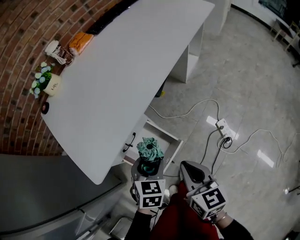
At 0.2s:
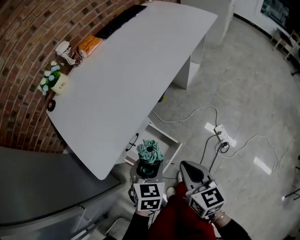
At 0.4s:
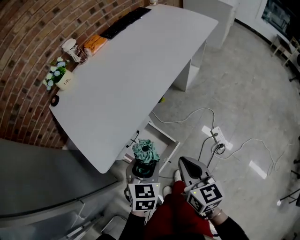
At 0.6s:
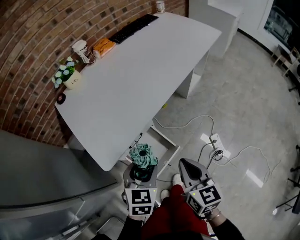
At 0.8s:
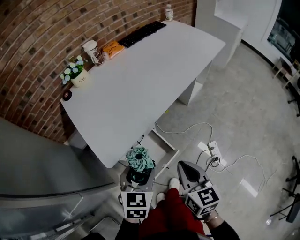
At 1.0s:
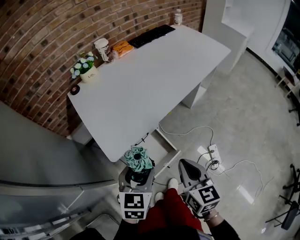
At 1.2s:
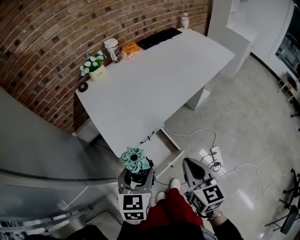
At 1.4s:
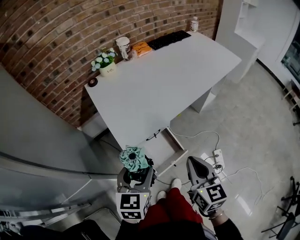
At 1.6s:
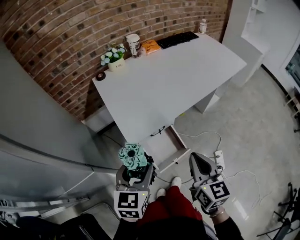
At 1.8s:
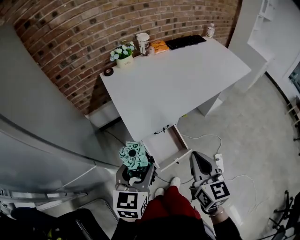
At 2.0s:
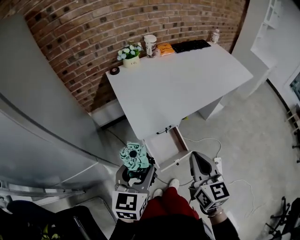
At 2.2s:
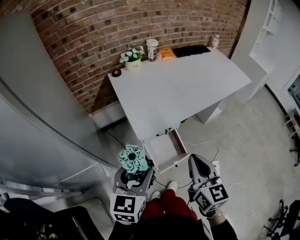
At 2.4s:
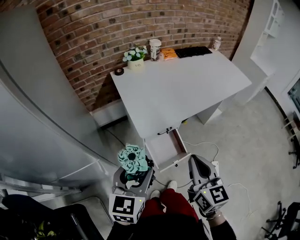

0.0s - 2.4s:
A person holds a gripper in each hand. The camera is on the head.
0.0s - 1.2s: The left gripper goes approximately 25 cm upward, to the left and backward, and turns by some 20 degrees, while the right gripper shifts about 15 cm upward.
1.2s - 2.4s: The left gripper goes about 15 cm backward, to the left and upward, while the right gripper moves to the left, upward and backward, roughly 15 cm.

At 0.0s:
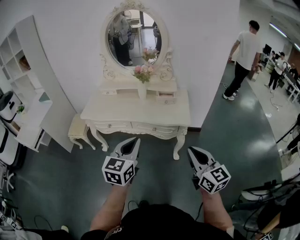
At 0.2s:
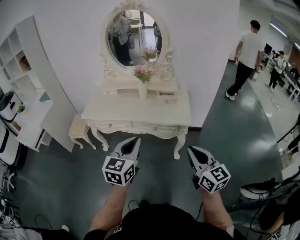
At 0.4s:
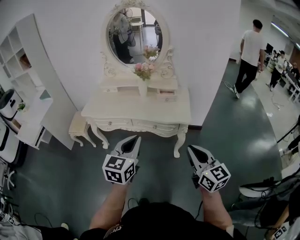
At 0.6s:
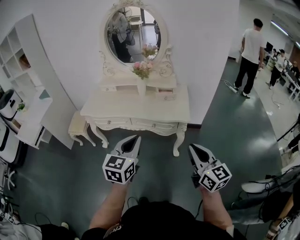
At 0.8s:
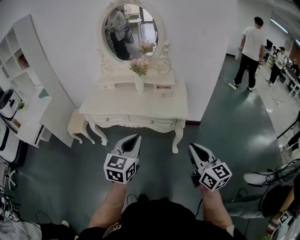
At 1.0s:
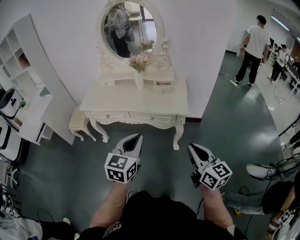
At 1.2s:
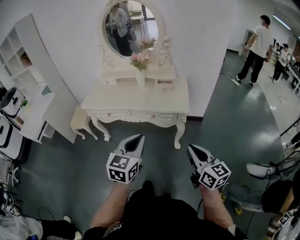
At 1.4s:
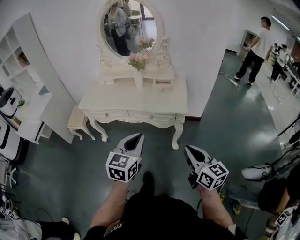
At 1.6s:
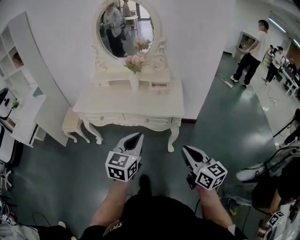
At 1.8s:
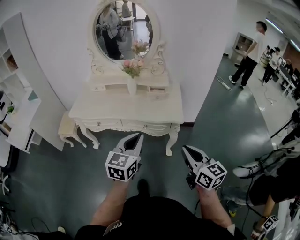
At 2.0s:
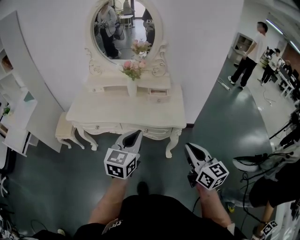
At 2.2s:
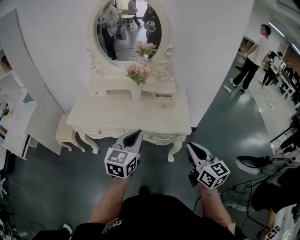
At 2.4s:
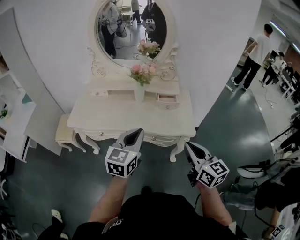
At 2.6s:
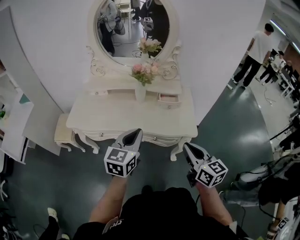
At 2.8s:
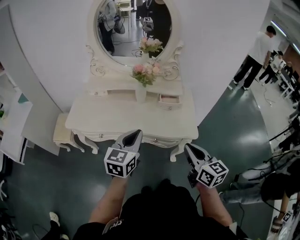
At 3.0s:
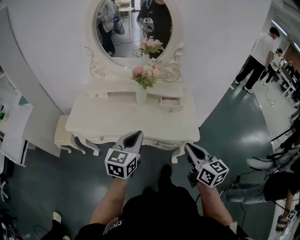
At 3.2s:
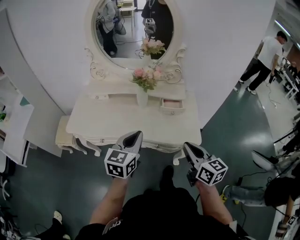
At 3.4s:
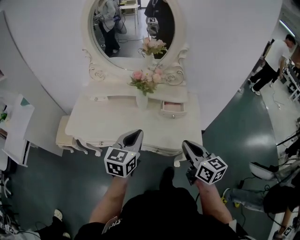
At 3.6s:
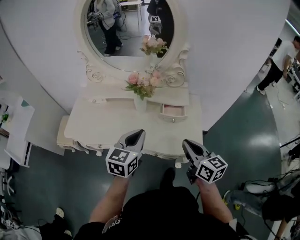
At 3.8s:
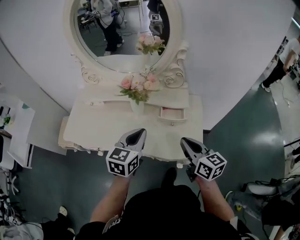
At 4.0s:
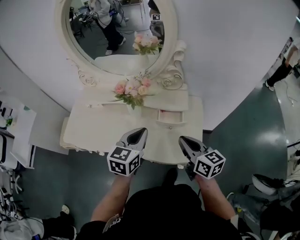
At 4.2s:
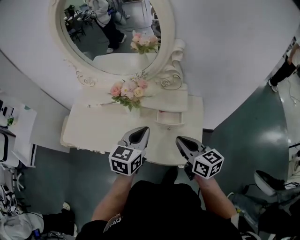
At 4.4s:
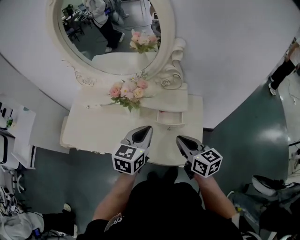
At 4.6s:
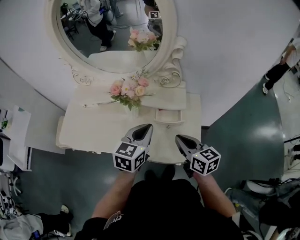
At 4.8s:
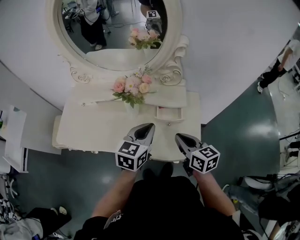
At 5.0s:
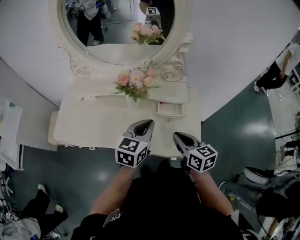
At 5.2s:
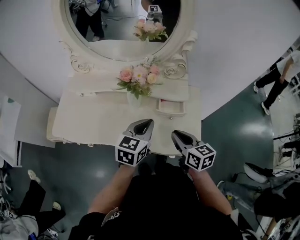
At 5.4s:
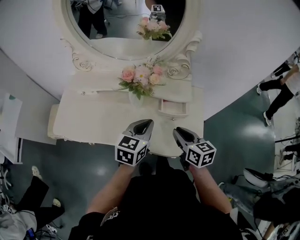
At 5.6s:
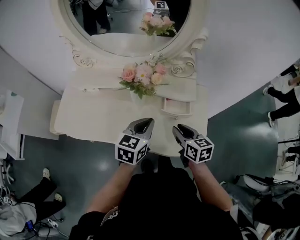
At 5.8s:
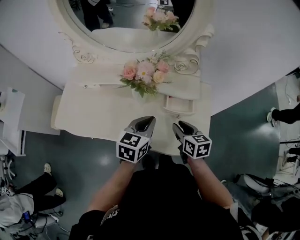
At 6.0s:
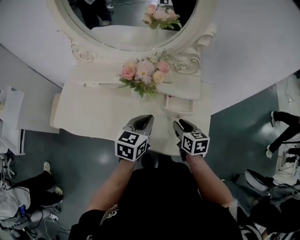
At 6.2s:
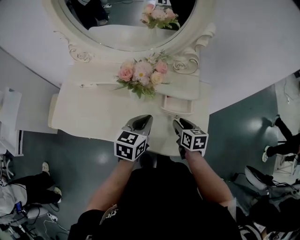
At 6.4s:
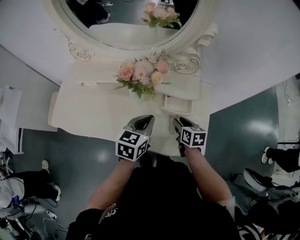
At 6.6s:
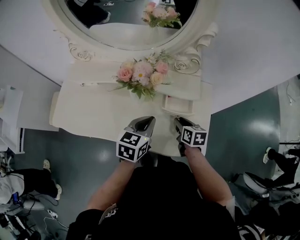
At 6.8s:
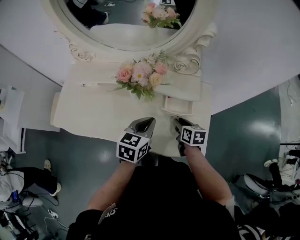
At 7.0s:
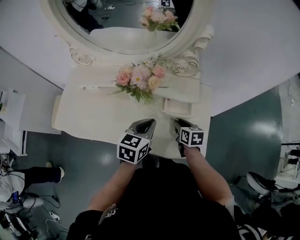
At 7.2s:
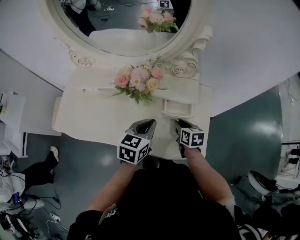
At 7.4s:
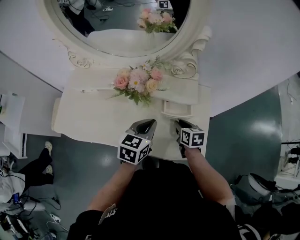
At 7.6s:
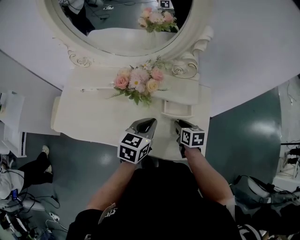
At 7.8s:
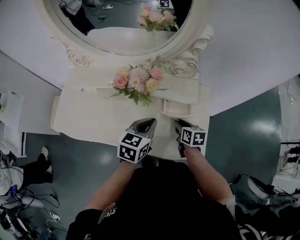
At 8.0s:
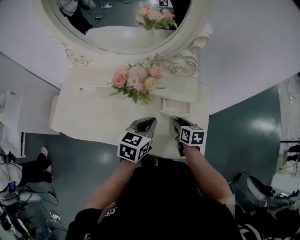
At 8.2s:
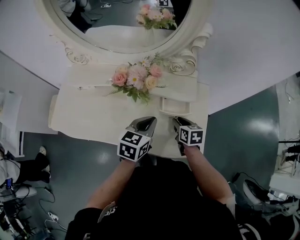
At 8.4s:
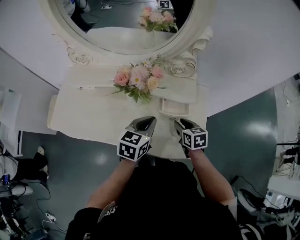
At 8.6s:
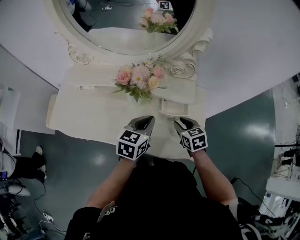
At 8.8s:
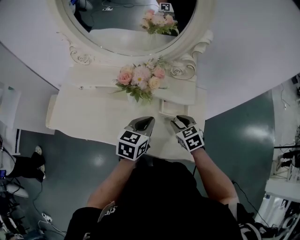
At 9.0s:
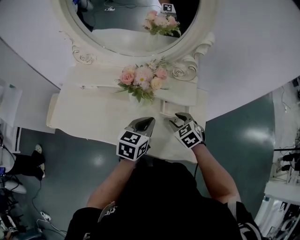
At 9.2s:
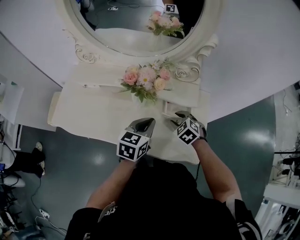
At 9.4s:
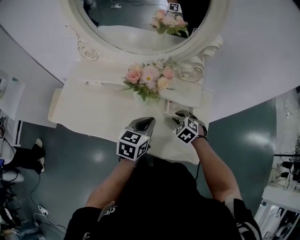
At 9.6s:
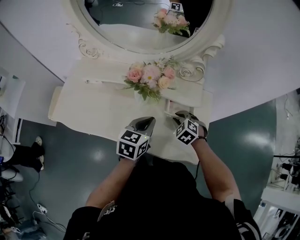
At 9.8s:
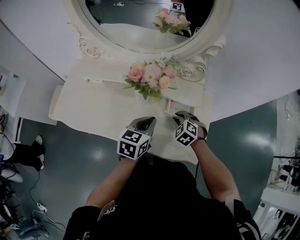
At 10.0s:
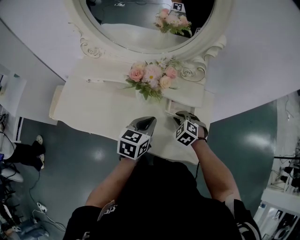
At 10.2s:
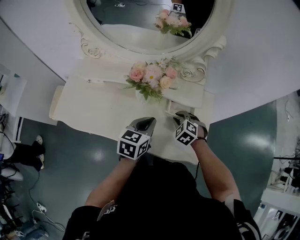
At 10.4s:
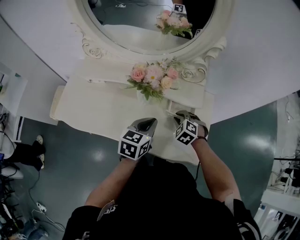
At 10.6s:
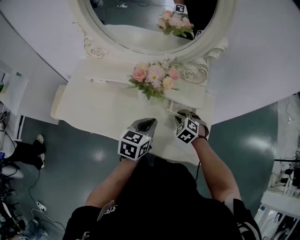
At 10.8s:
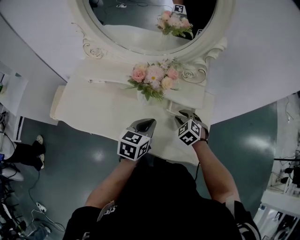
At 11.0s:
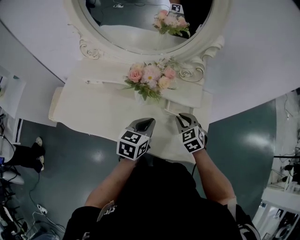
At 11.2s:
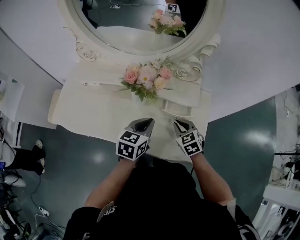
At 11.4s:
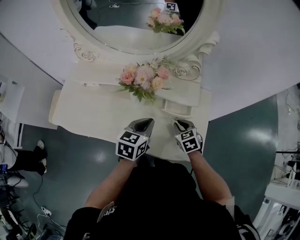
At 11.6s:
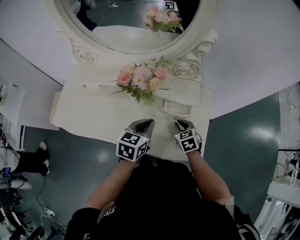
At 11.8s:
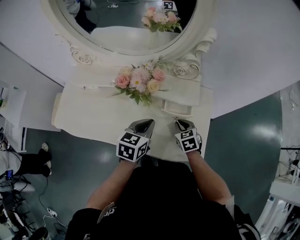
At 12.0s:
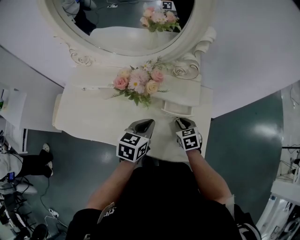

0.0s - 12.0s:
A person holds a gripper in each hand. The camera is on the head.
0.0s - 1.6s: The left gripper is displaced to the right by roughly 5 cm; the right gripper moves some 5 cm.
1.6s - 3.0s: The two grippers go approximately 25 cm forward.
3.0s - 4.4s: The right gripper heads forward, covering approximately 25 cm. The left gripper heads forward and to the right, covering some 25 cm.
4.4s - 6.0s: The left gripper is displaced downward and to the left by about 10 cm. Meanwhile the right gripper heads downward and forward, covering some 15 cm, changes its angle by about 20 degrees, and opens its fingers.
6.0s - 7.6s: The right gripper shifts some 5 cm downward.
7.6s - 9.0s: The right gripper moves approximately 5 cm, and twists about 50 degrees counterclockwise, seen from behind.
9.0s - 10.4s: The right gripper swivels about 20 degrees.
10.4s - 12.0s: The right gripper rolls clockwise, seen from behind, by some 50 degrees.

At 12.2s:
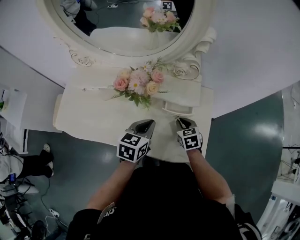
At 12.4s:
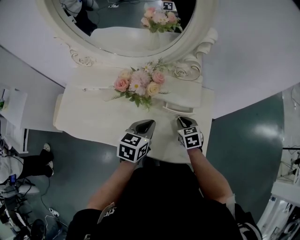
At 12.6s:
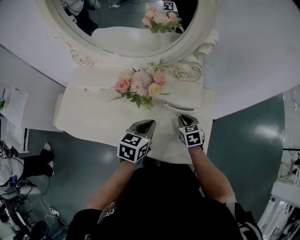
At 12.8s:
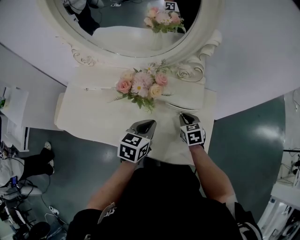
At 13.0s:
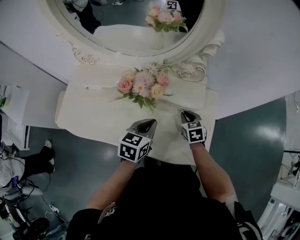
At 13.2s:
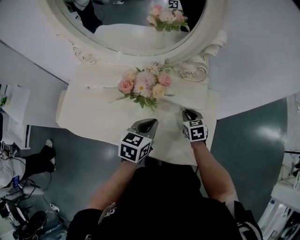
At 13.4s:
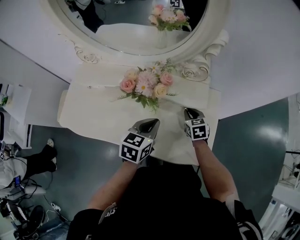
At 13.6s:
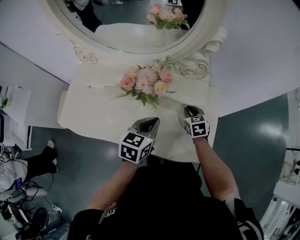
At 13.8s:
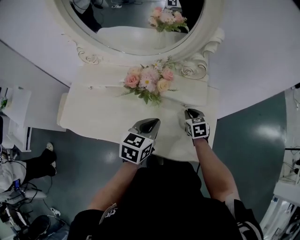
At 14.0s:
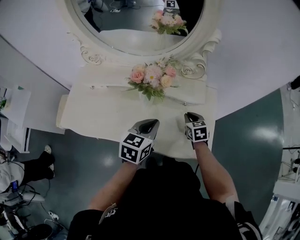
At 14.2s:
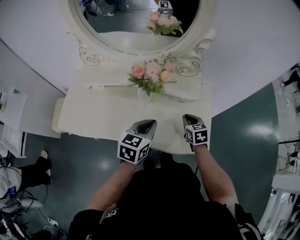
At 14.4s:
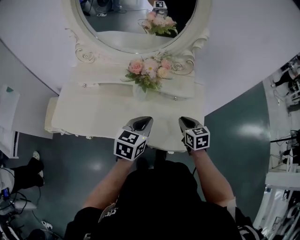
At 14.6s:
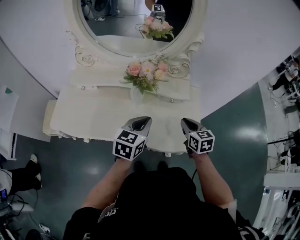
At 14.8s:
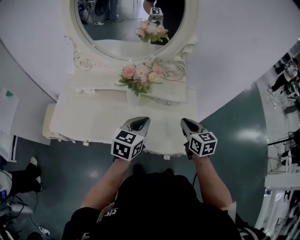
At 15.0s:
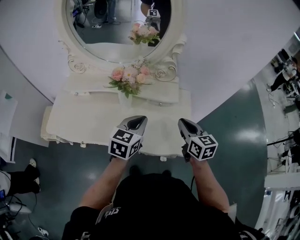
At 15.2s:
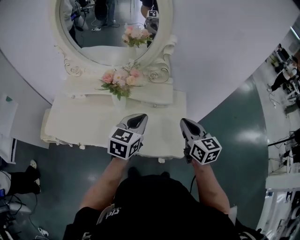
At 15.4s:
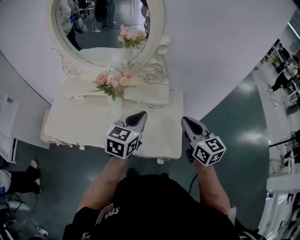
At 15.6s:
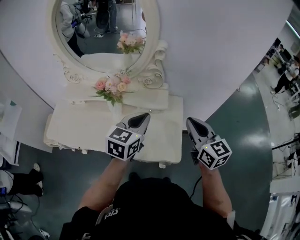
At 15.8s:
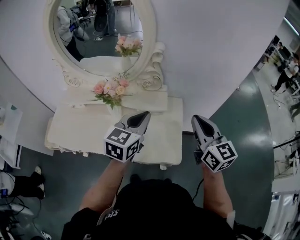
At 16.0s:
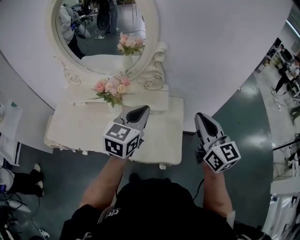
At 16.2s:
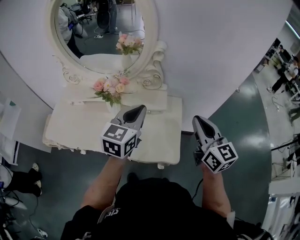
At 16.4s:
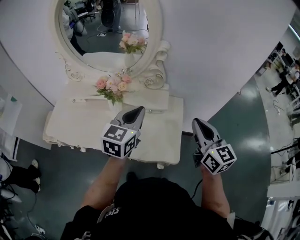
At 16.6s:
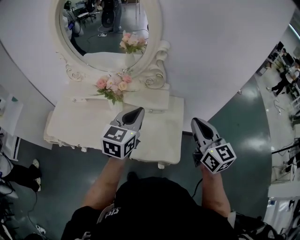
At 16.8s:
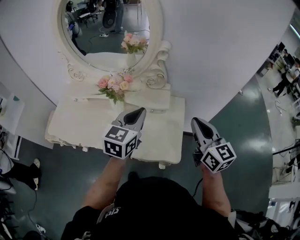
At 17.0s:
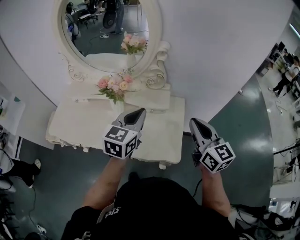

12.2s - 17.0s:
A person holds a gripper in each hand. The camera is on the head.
12.2s - 13.8s: There are only small adjustments of the grippers.
13.8s - 15.4s: The left gripper goes about 15 cm upward and to the right. Meanwhile the right gripper moves upward, backward and to the right, about 30 cm, and tips its fingers upward by approximately 30 degrees.
15.4s - 17.0s: The right gripper heads upward, covering roughly 5 cm.

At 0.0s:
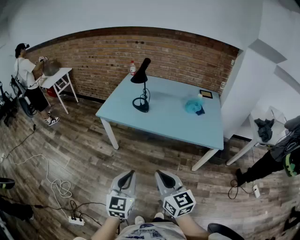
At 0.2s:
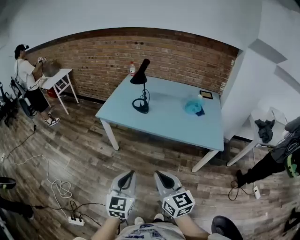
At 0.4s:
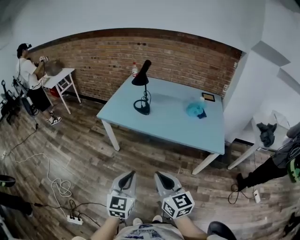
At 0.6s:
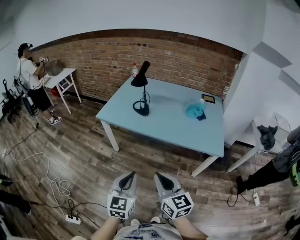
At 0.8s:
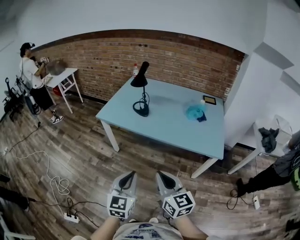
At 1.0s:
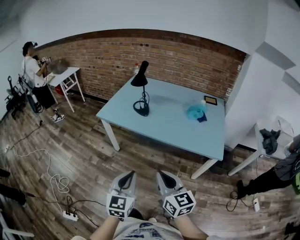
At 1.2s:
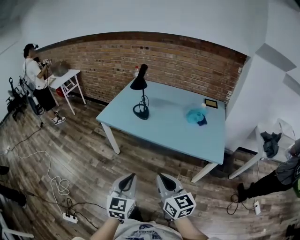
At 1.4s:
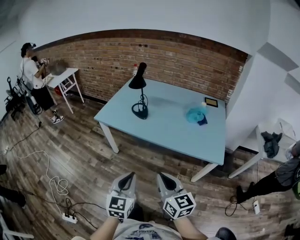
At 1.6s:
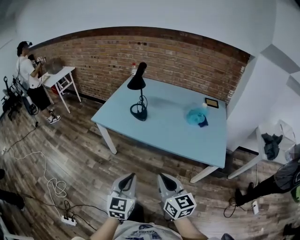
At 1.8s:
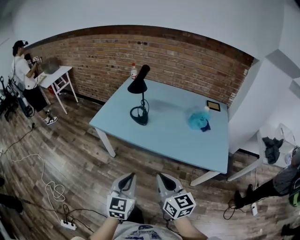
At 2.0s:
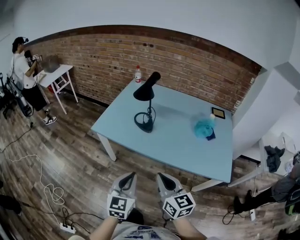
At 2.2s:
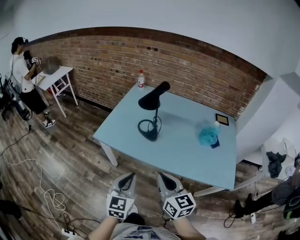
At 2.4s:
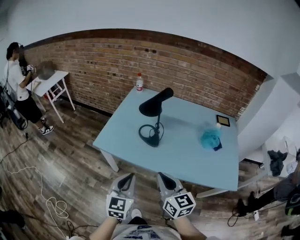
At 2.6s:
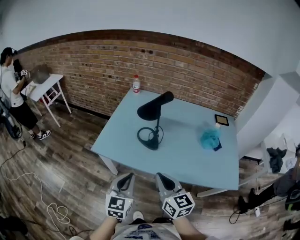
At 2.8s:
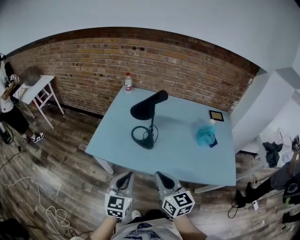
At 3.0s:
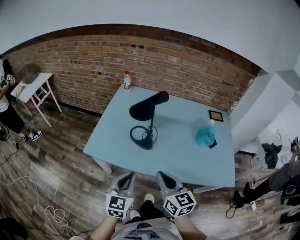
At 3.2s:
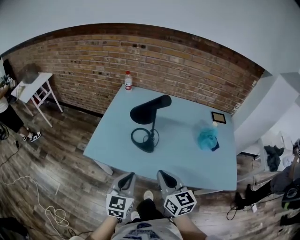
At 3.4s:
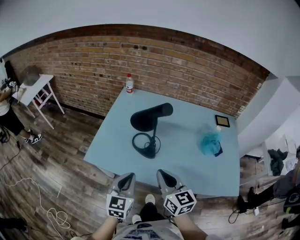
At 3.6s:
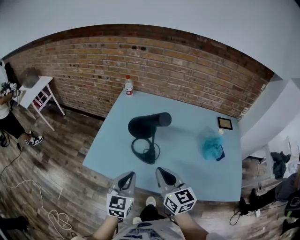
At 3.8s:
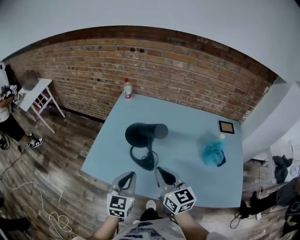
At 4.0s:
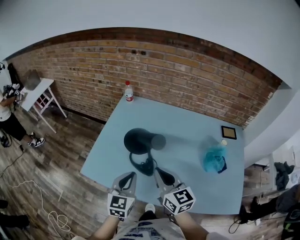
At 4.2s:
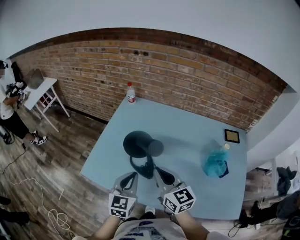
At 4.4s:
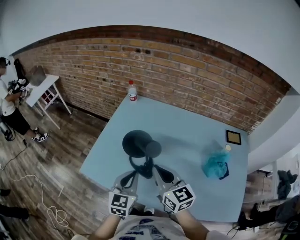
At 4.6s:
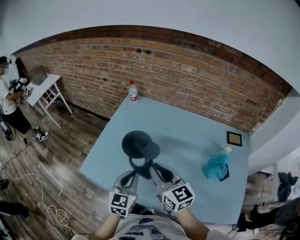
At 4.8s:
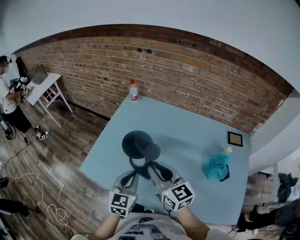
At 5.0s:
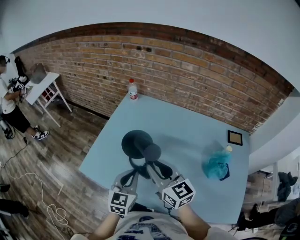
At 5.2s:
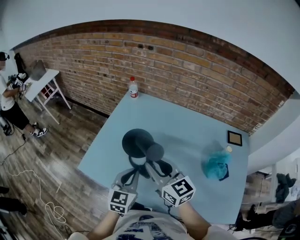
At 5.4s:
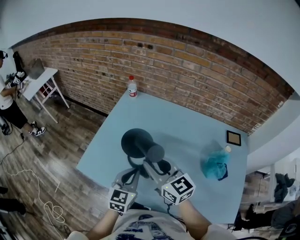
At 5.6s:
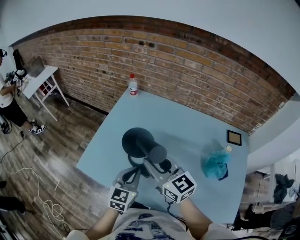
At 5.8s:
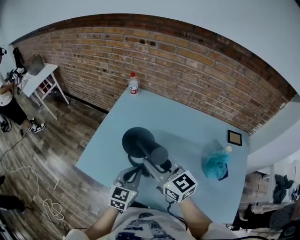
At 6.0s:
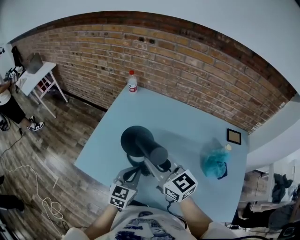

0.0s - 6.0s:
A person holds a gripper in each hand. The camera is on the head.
0.0s - 1.6s: Both grippers travel together forward and to the right, about 15 cm.
1.6s - 3.0s: Both grippers move forward, roughly 30 cm.
3.0s - 4.4s: The grippers both shift forward by about 25 cm.
4.4s - 6.0s: The left gripper moves downward, roughly 5 cm. The right gripper ends up about 5 cm from where it was.
